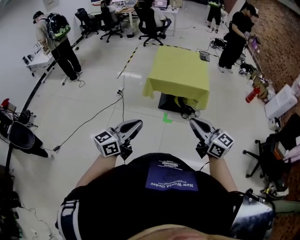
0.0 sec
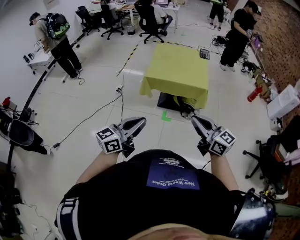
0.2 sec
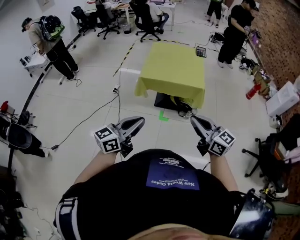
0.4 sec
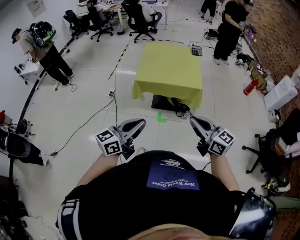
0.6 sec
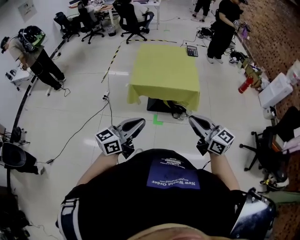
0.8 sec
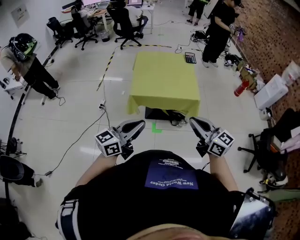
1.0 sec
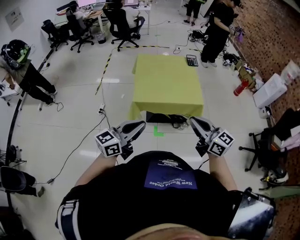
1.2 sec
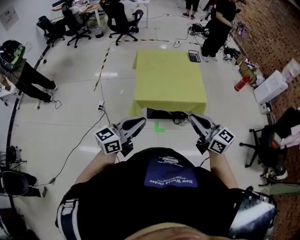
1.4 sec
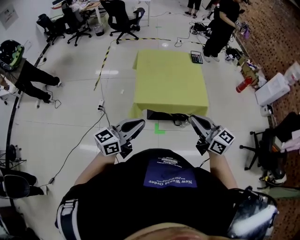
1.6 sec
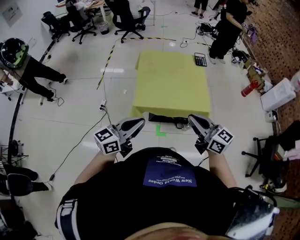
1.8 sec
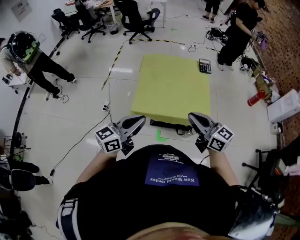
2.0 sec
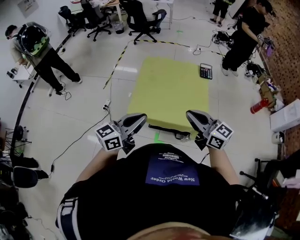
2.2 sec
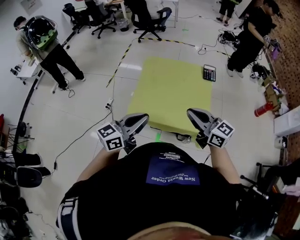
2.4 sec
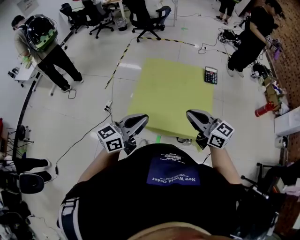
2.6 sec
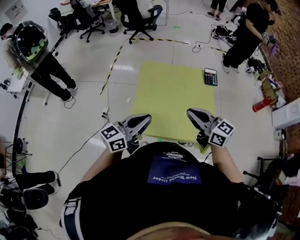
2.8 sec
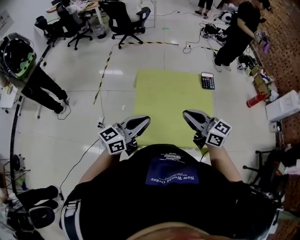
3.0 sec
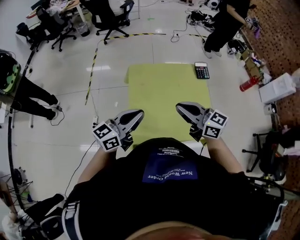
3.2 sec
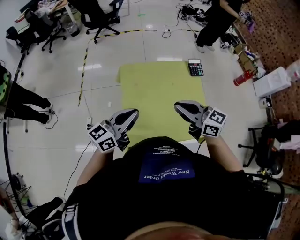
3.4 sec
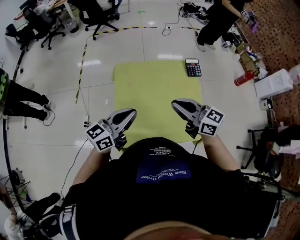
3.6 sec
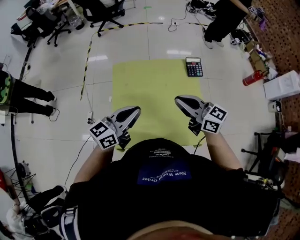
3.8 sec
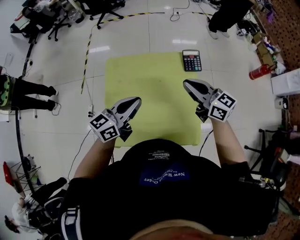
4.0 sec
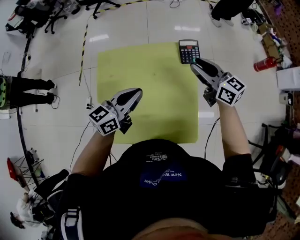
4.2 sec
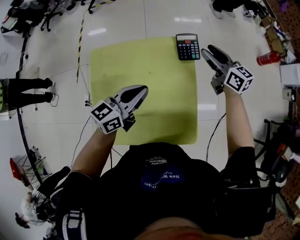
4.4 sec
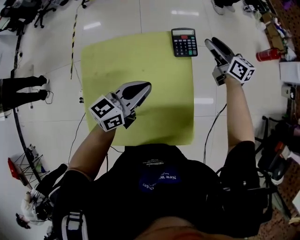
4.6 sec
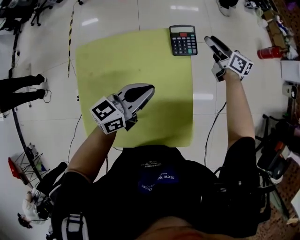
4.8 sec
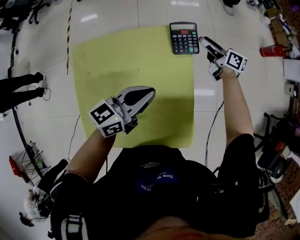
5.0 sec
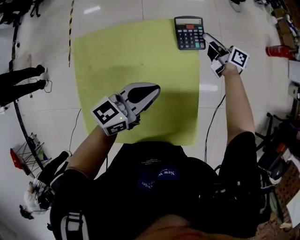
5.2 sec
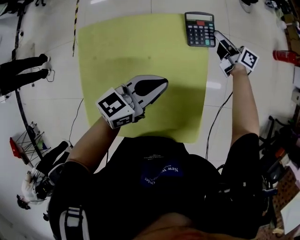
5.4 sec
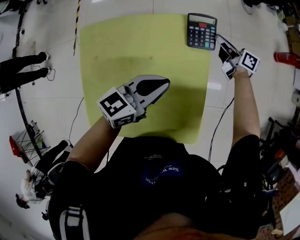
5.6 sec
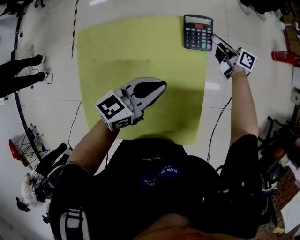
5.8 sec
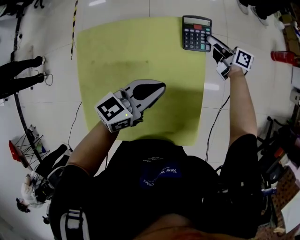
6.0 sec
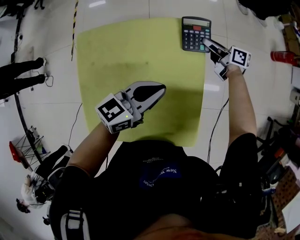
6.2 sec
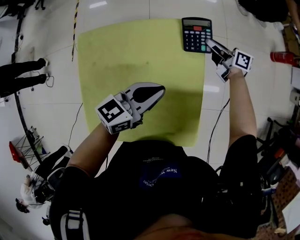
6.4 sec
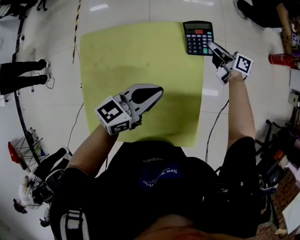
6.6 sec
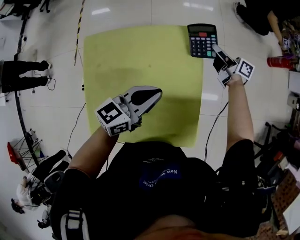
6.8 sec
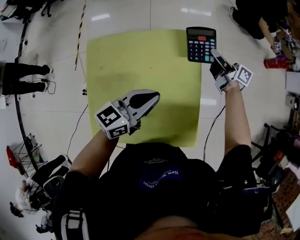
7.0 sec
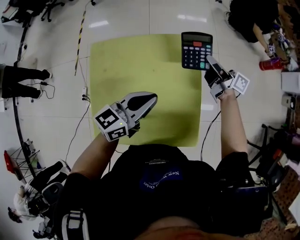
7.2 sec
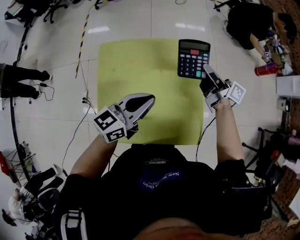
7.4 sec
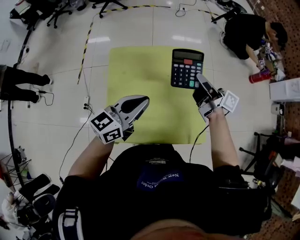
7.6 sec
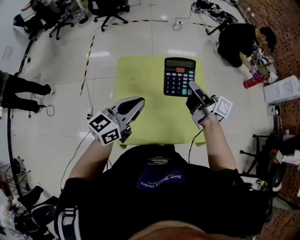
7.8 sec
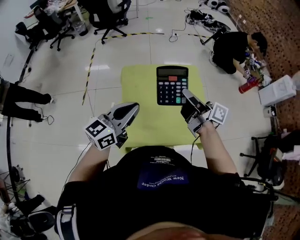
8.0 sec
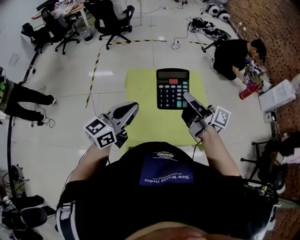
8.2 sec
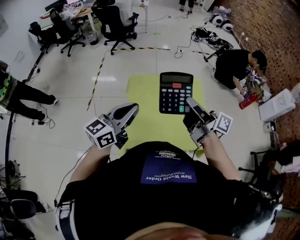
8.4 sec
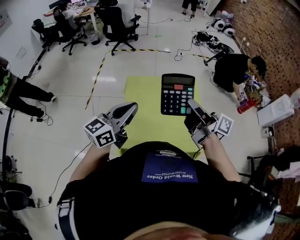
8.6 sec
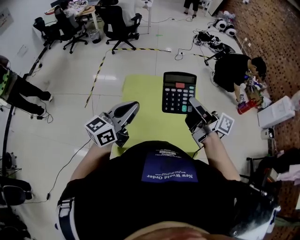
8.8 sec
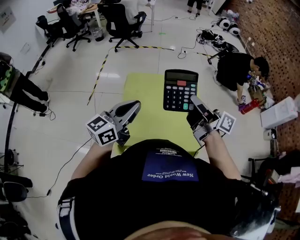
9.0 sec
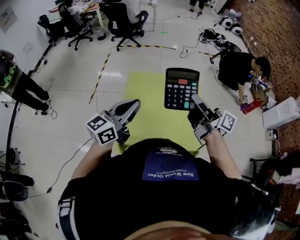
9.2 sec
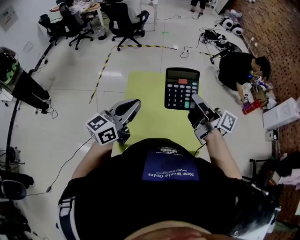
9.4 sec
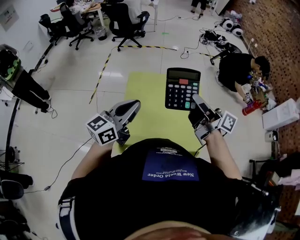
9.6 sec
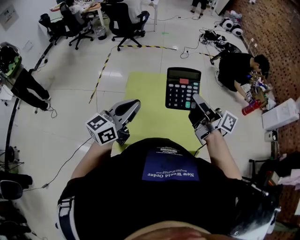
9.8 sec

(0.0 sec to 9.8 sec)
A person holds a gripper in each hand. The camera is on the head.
0.0 sec - 1.4 sec: Both grippers travel together forward, approximately 35 cm.
1.4 sec - 2.8 sec: Both grippers move forward, about 35 cm.
2.8 sec - 4.2 sec: The grippers both shift forward and to the right by roughly 35 cm. The right gripper opens.
4.2 sec - 5.6 sec: The right gripper travels downward and forward by some 30 cm, turns by approximately 40 degrees, and opens, then closes once more. The left gripper goes some 15 cm to the right, downward and forward.
5.6 sec - 7.0 sec: The right gripper is displaced upward and backward by approximately 10 cm, while the left gripper shifts by about 5 cm.
7.0 sec - 8.4 sec: The right gripper moves backward, upward and to the left, some 60 cm. Meanwhile the left gripper goes roughly 40 cm to the left, upward and backward, and swivels some 20 degrees.
8.4 sec - 9.8 sec: The grippers both shift to the right by some 5 cm.

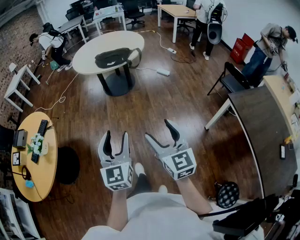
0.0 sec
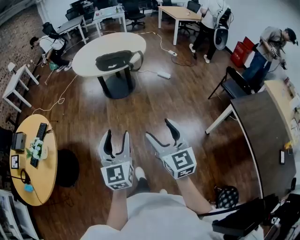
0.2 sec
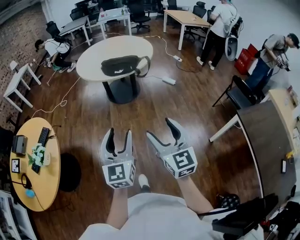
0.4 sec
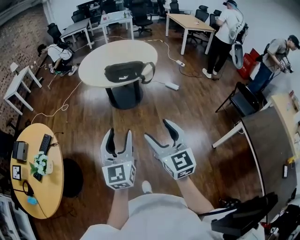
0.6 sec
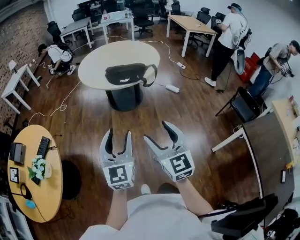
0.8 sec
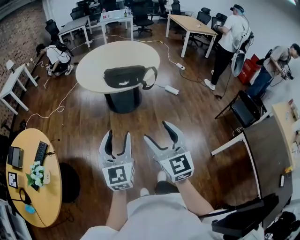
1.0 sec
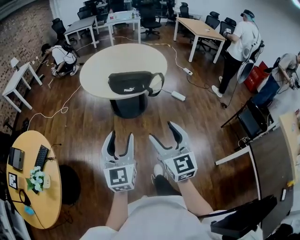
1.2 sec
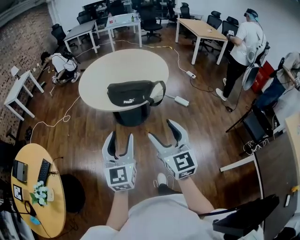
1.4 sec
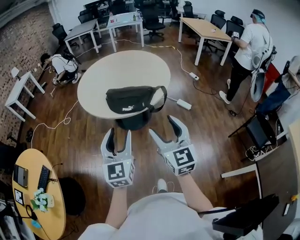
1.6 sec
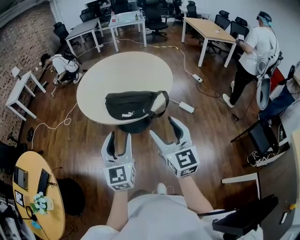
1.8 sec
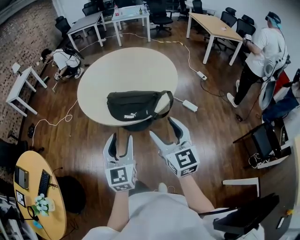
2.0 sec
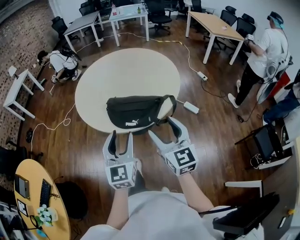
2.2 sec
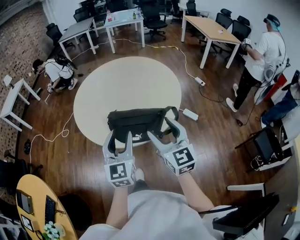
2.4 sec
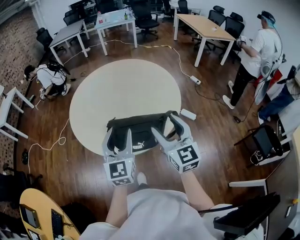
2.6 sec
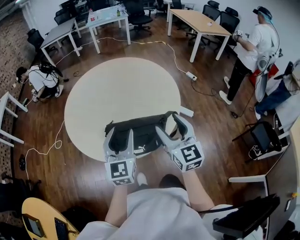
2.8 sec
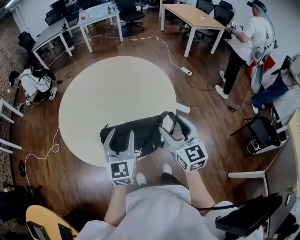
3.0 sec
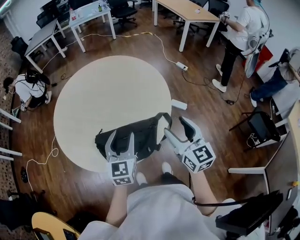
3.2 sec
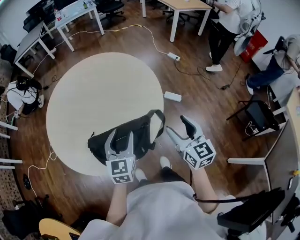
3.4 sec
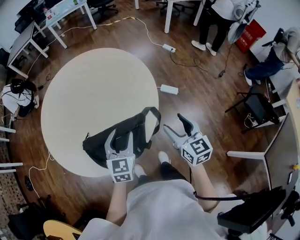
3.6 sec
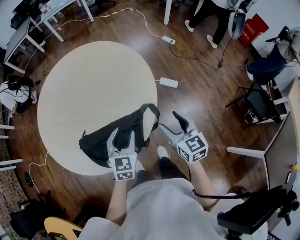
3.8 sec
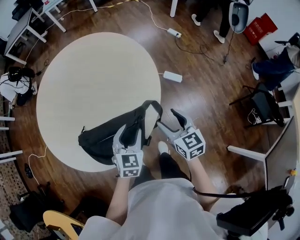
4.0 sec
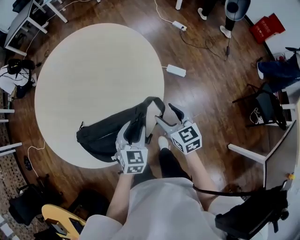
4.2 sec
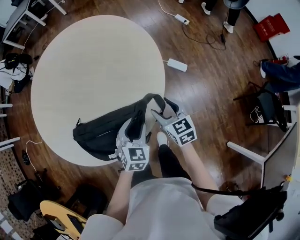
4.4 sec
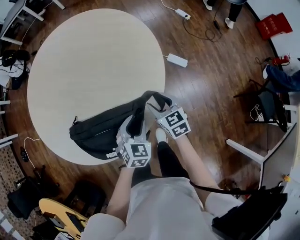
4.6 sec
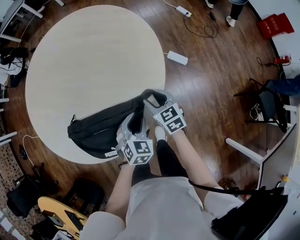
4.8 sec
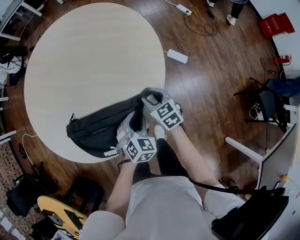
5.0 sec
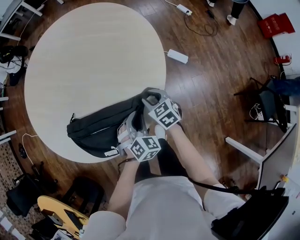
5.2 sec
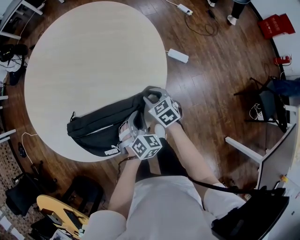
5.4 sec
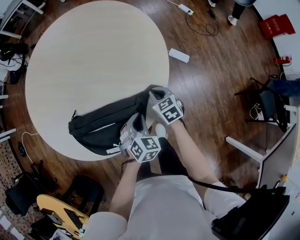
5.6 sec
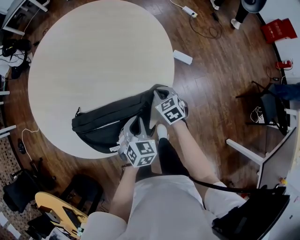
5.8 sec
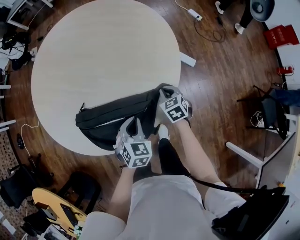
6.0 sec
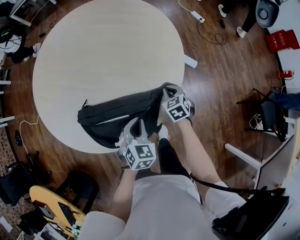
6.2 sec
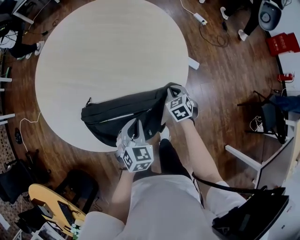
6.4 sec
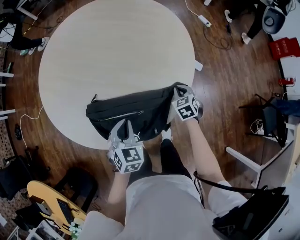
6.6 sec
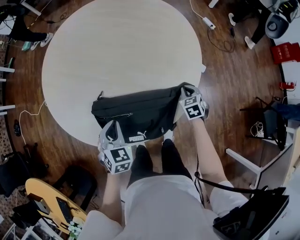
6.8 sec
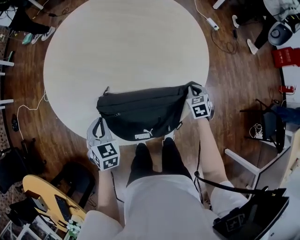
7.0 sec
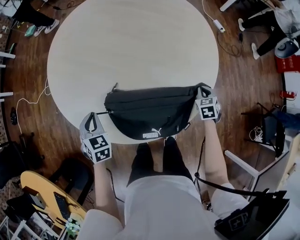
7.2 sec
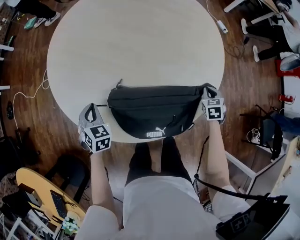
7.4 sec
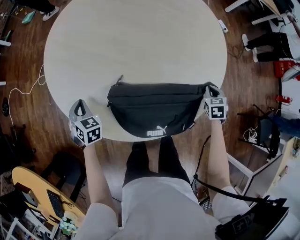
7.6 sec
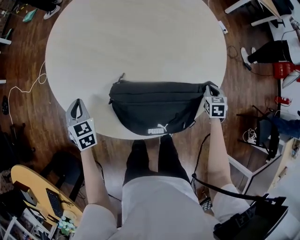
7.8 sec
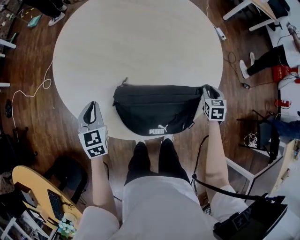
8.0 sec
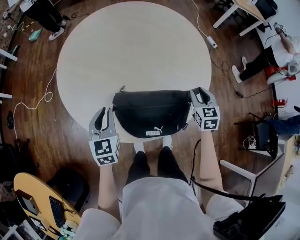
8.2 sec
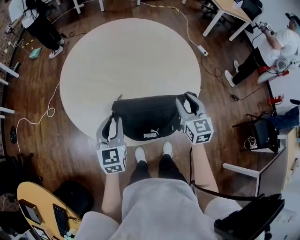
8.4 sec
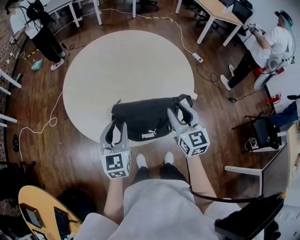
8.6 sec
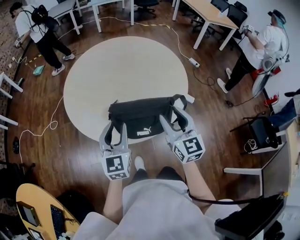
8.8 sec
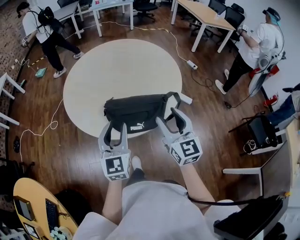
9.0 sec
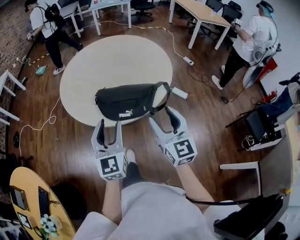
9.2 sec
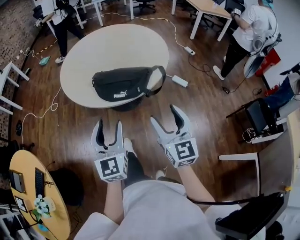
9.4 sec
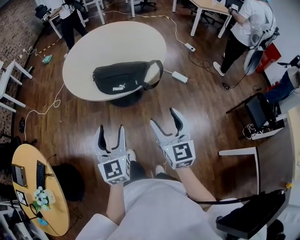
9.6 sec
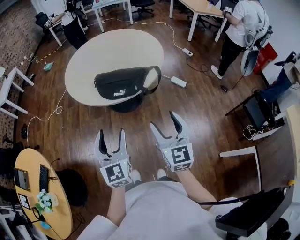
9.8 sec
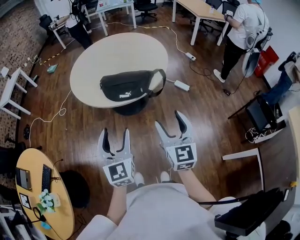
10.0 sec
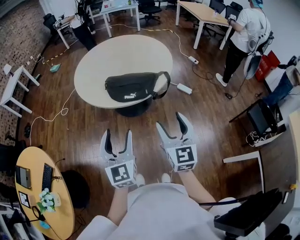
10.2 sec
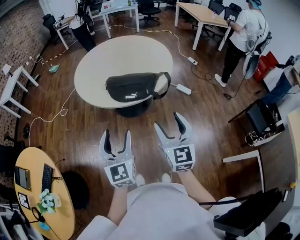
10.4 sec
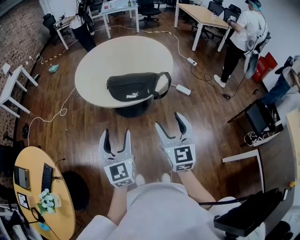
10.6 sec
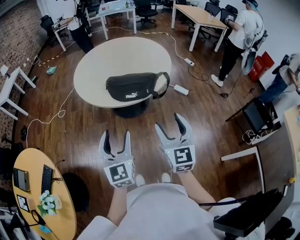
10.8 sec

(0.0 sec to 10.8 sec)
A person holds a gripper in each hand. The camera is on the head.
0.0 sec - 1.6 sec: The two grippers travel together, forward, roughly 50 cm.
1.6 sec - 3.0 sec: The grippers both shift forward by approximately 40 cm.
3.0 sec - 4.6 sec: The left gripper travels downward and to the right by roughly 30 cm, and tips its fingers downward by some 40 degrees, while the right gripper is displaced downward and forward by about 30 cm, and turns by approximately 30 degrees.
4.6 sec - 6.2 sec: The left gripper travels to the left by roughly 10 cm, and closes up. Meanwhile the right gripper is displaced downward by roughly 5 cm, rotates some 20 degrees, and closes.
6.2 sec - 7.8 sec: The left gripper heads to the left, covering about 50 cm, and swivels about 30 degrees.
7.8 sec - 9.2 sec: The right gripper shifts roughly 50 cm upward and backward, tips its fingers upward by about 50 degrees, and opens up, while the left gripper is displaced backward, upward and to the right by roughly 50 cm, points its fingers some 40 degrees further upward, and opens up.
9.2 sec - 10.8 sec: The grippers both shift backward by roughly 20 cm.

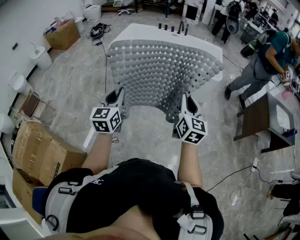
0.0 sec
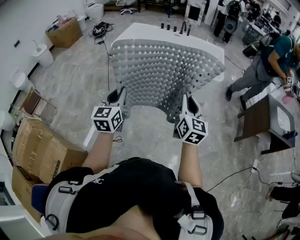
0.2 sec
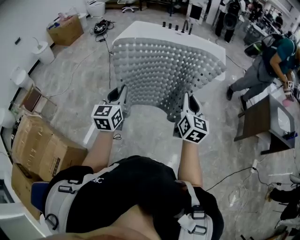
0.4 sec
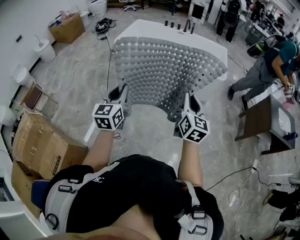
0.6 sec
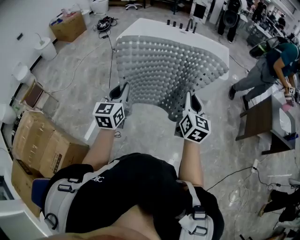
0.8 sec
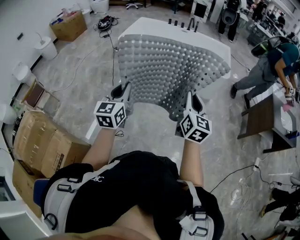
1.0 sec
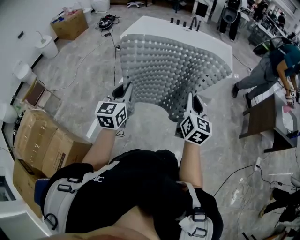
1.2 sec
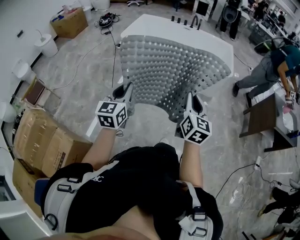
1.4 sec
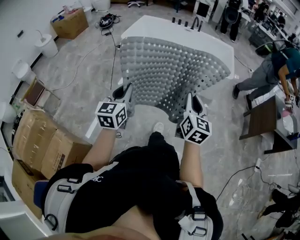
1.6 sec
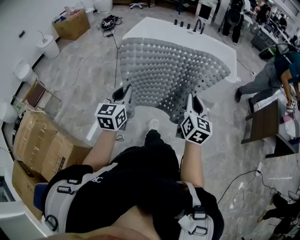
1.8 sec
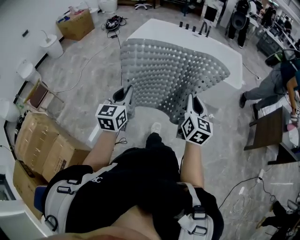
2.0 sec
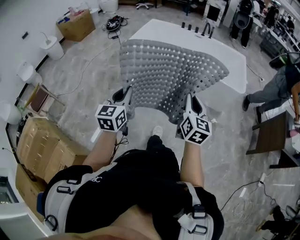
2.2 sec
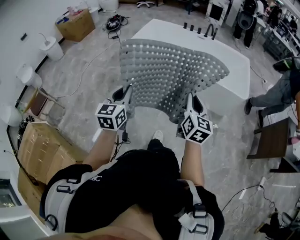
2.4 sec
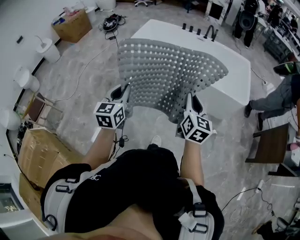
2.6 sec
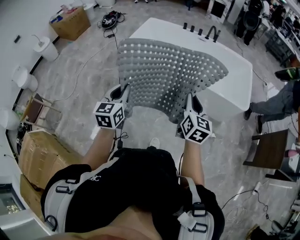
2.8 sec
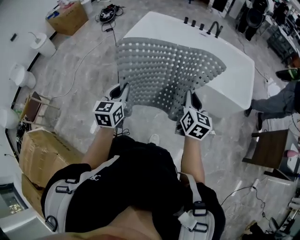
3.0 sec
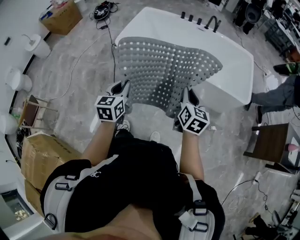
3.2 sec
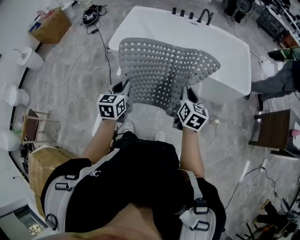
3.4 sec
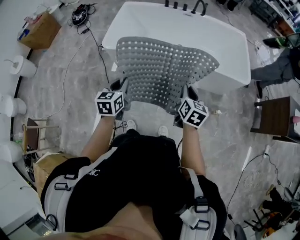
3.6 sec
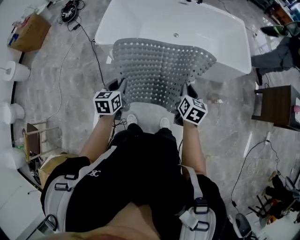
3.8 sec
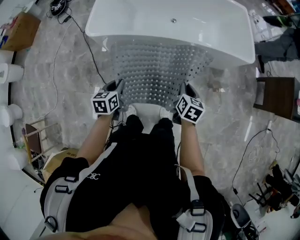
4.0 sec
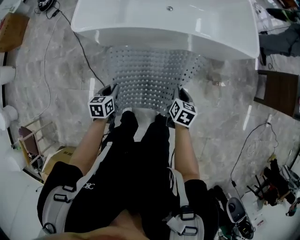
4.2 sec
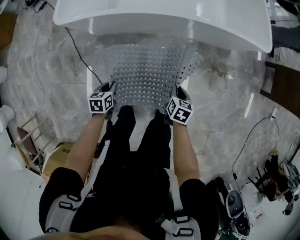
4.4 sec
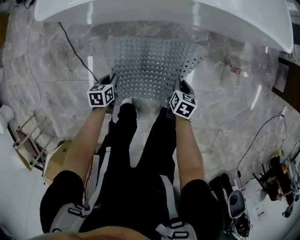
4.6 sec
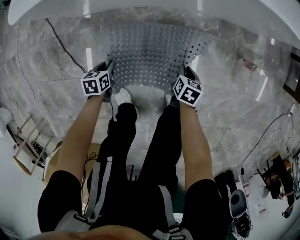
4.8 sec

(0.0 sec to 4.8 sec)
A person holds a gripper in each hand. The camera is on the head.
0.0 sec - 1.6 sec: Both grippers travel together to the left, about 10 cm.
1.6 sec - 3.2 sec: Both grippers are carried forward, about 40 cm.
3.2 sec - 4.8 sec: The two grippers go some 70 cm downward. The right gripper tilts its fingers about 40 degrees downward. Meanwhile the left gripper tips its fingers downward by about 40 degrees.
